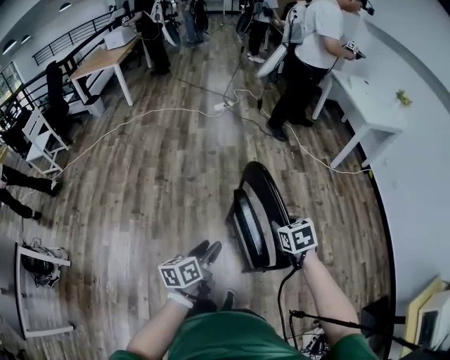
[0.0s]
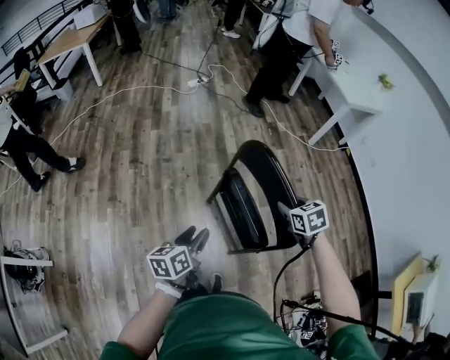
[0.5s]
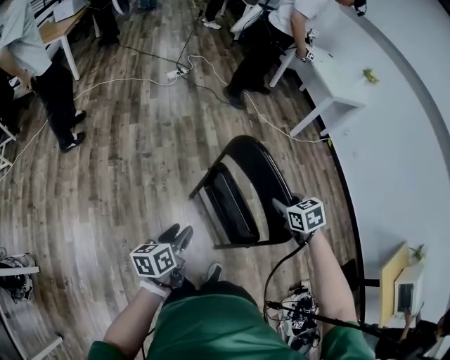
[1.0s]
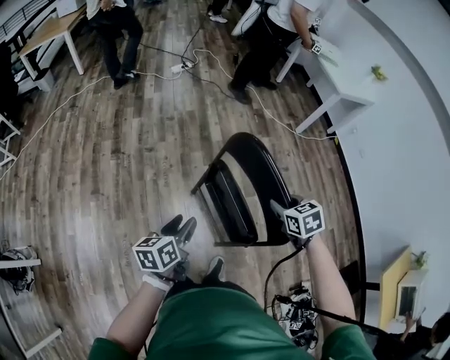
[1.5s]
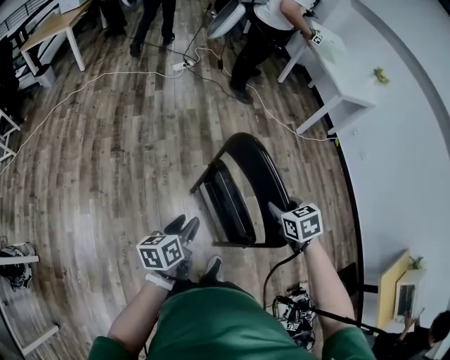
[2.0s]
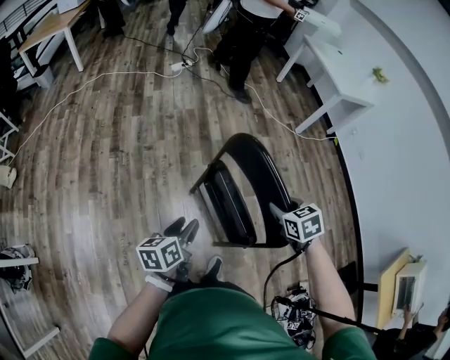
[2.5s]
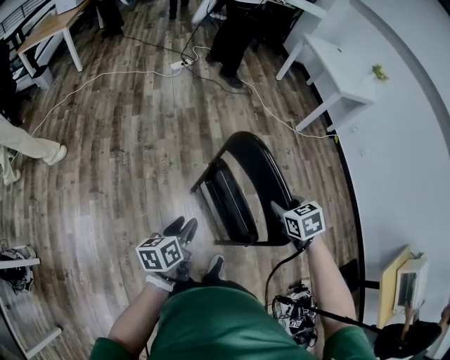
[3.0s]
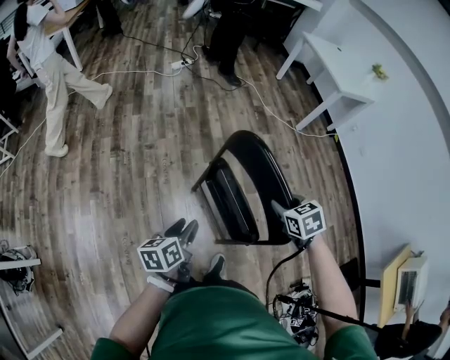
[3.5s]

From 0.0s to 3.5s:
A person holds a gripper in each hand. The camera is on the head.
From 0.0s to 2.0s: The left gripper travels forward by roughly 10 cm, while the right gripper ends up about 5 cm from where it was.
From 2.0s to 3.5s: The grippers make only small movements.

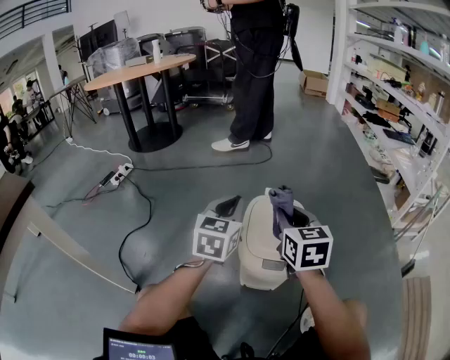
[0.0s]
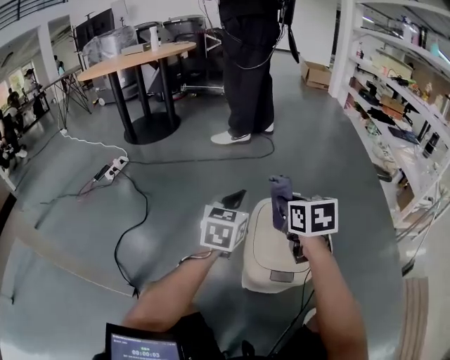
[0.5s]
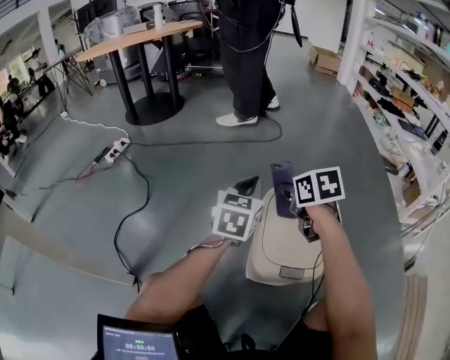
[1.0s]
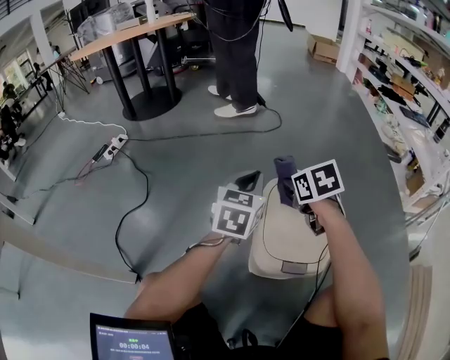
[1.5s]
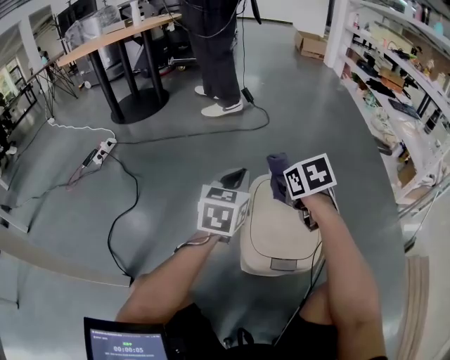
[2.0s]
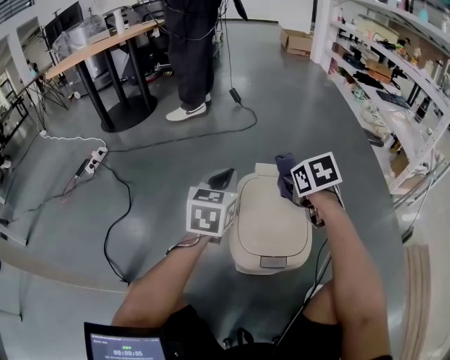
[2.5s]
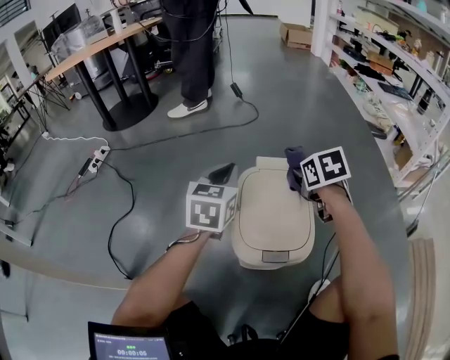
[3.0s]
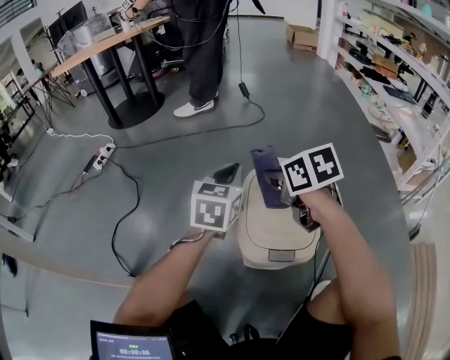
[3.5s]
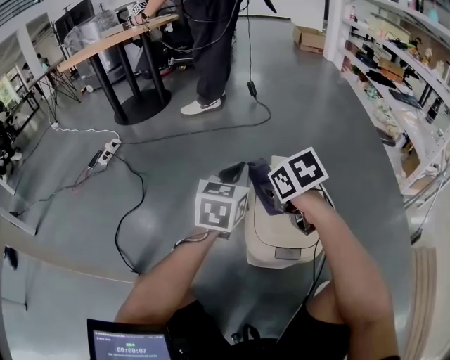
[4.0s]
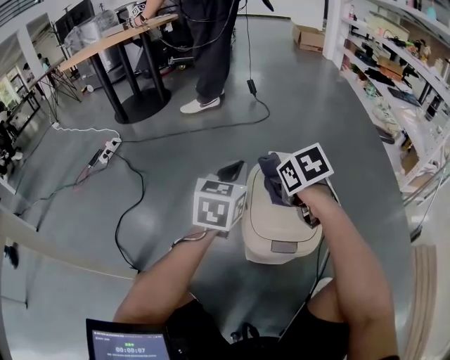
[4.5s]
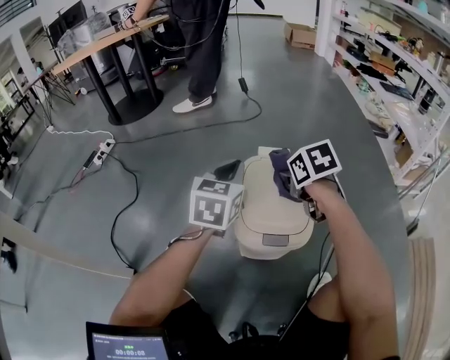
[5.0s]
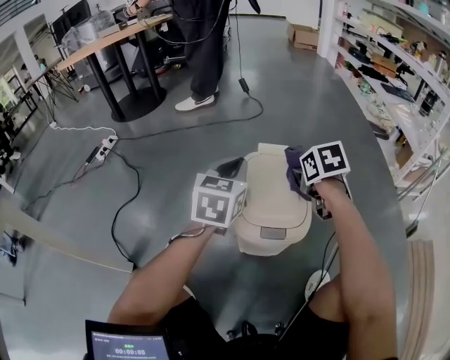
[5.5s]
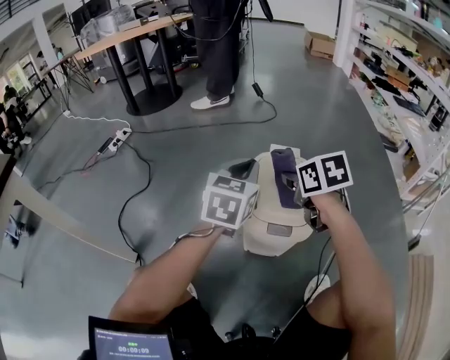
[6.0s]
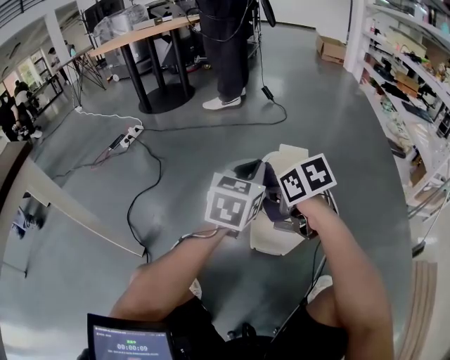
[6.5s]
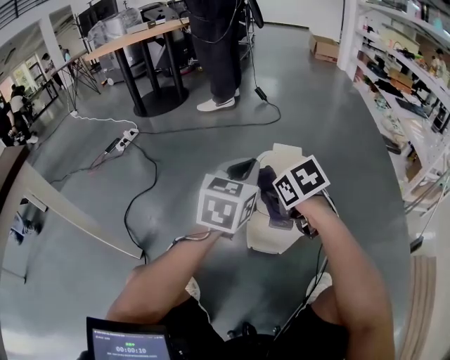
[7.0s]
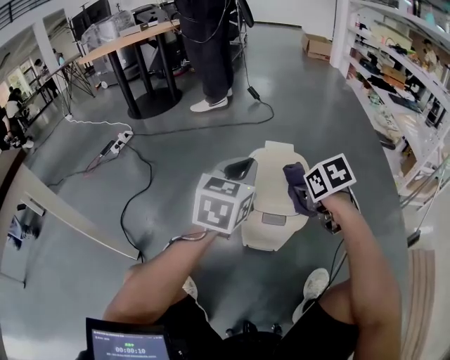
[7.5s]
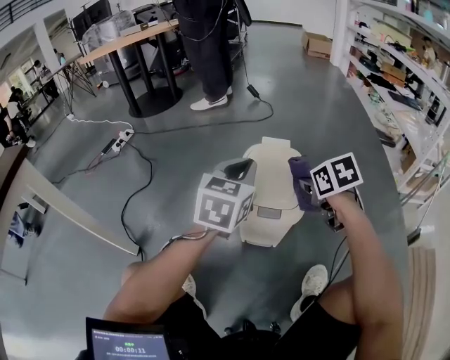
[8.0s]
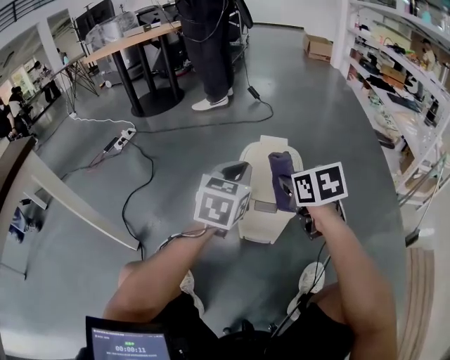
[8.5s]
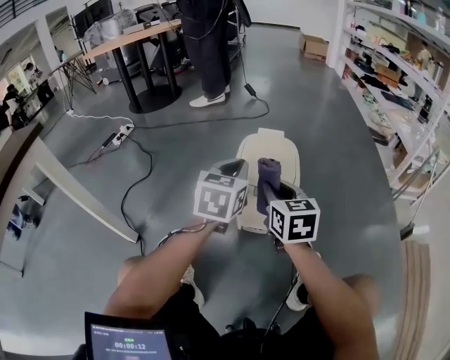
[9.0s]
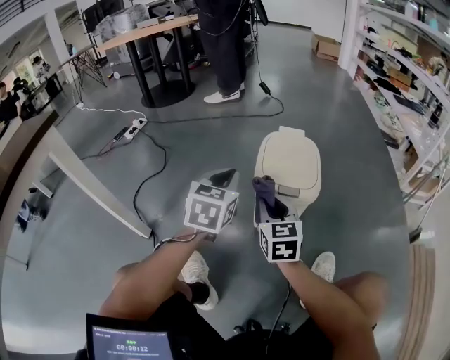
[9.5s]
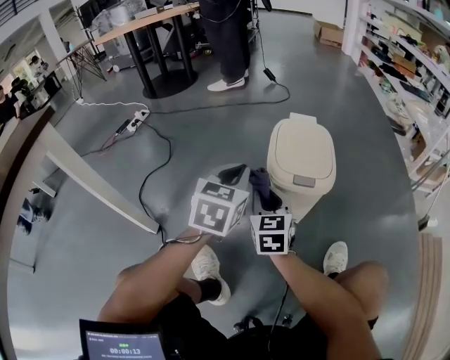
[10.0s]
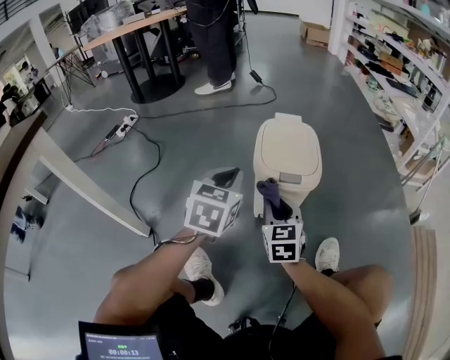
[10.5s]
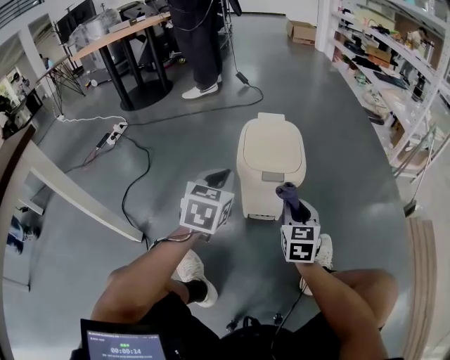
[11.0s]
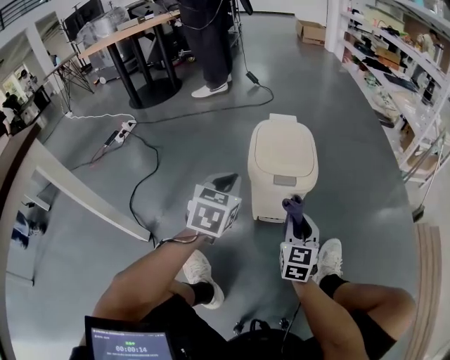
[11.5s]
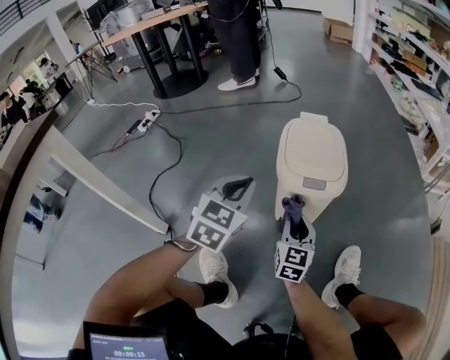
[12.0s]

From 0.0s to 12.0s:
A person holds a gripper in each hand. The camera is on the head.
From 0.0s to 2.0s: The right gripper heads forward and downward, covering roughly 20 cm, and angles its fingers downward, by roughly 30 degrees. Meanwhile the left gripper goes approximately 10 cm forward and downward.
From 2.0s to 4.0s: The right gripper heads to the left and backward, covering approximately 10 cm.
From 4.0s to 6.0s: The left gripper shifts approximately 10 cm backward; the right gripper heads to the right and backward, covering some 10 cm.
From 6.0s to 8.0s: The right gripper travels to the right and backward by about 10 cm, while the left gripper travels backward by about 5 cm.
From 8.0s to 10.0s: The left gripper is displaced to the left, backward and downward by approximately 15 cm; the right gripper travels to the left and backward by roughly 25 cm, and points its fingers approximately 30 degrees further upward.
From 10.0s to 12.0s: The right gripper moves to the right and downward, roughly 10 cm.

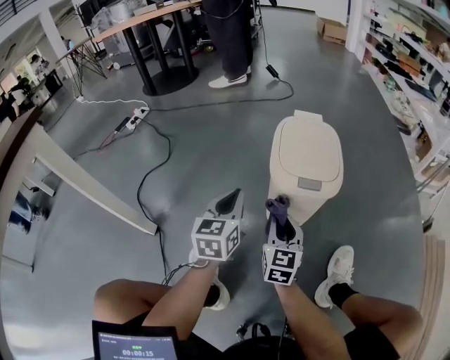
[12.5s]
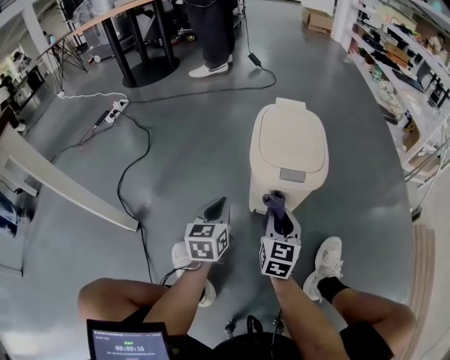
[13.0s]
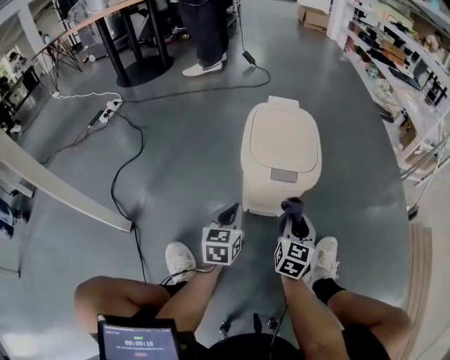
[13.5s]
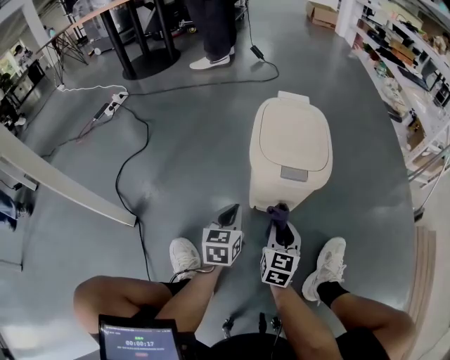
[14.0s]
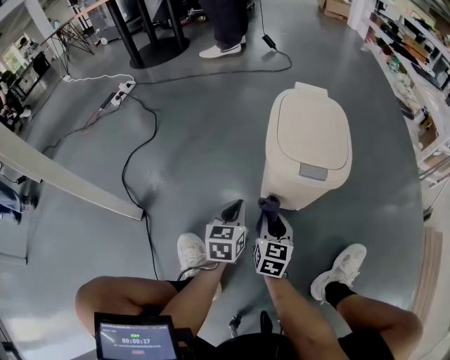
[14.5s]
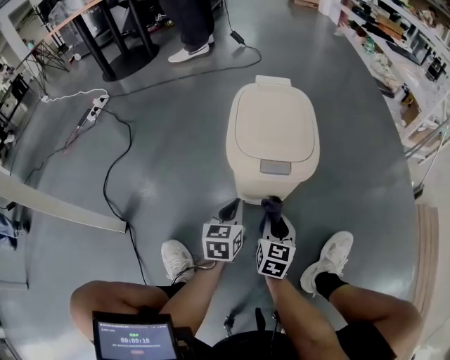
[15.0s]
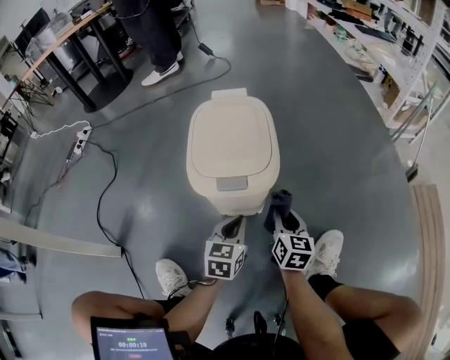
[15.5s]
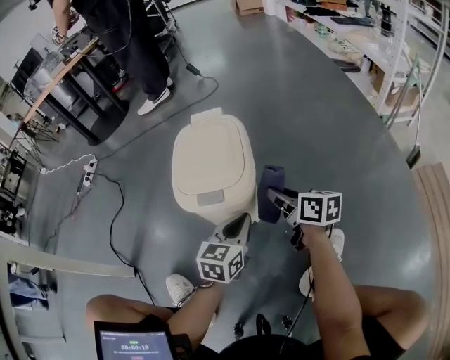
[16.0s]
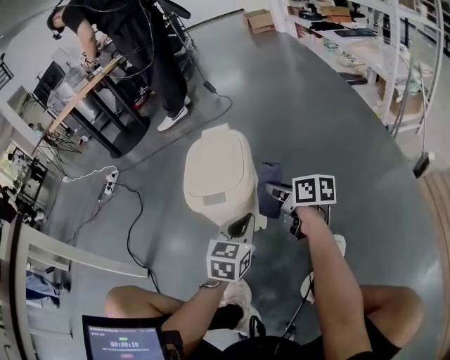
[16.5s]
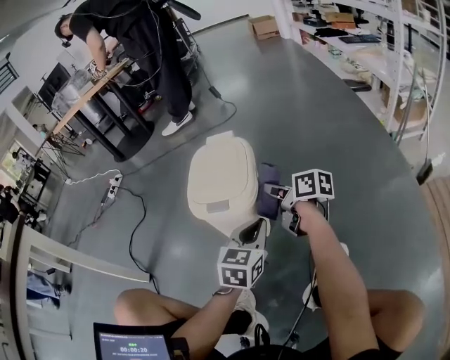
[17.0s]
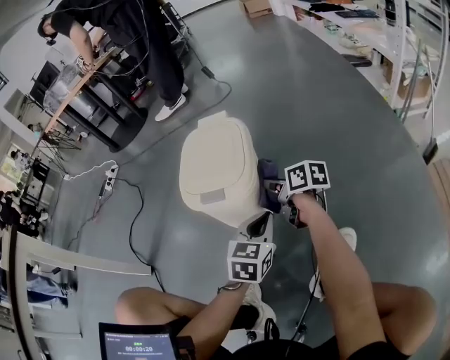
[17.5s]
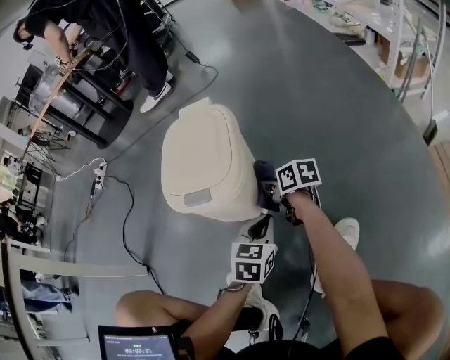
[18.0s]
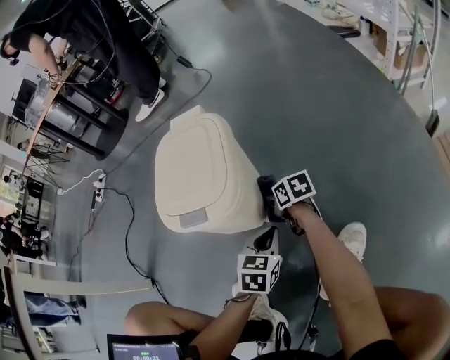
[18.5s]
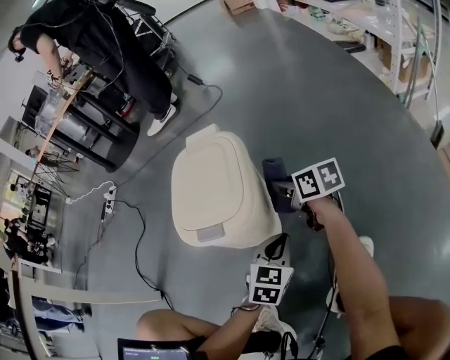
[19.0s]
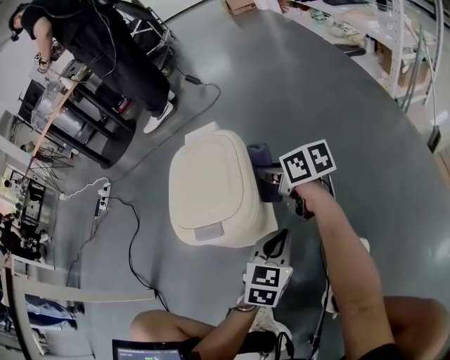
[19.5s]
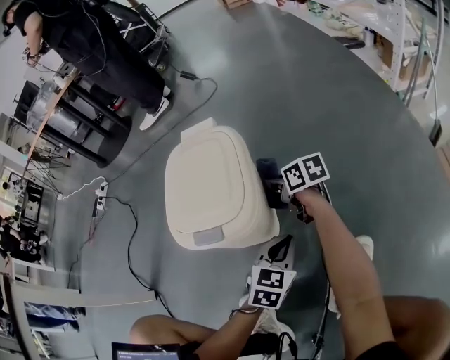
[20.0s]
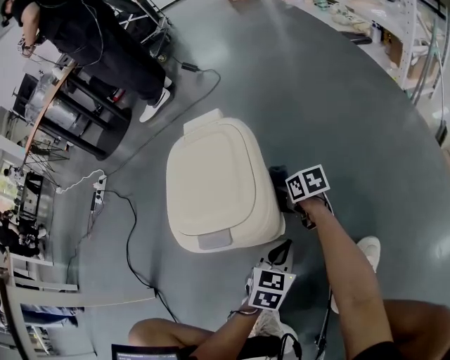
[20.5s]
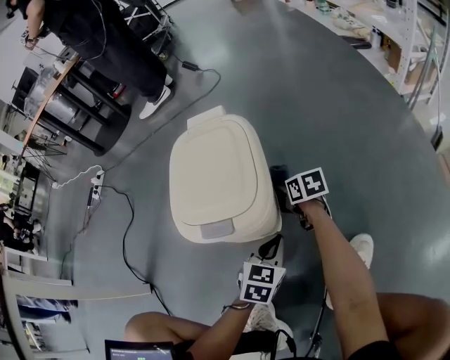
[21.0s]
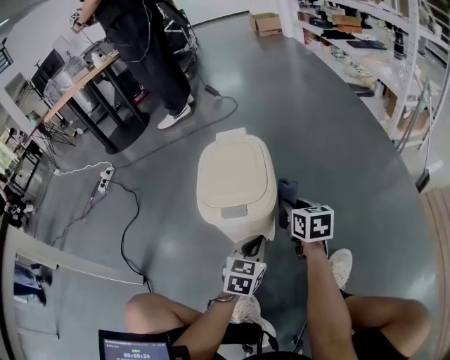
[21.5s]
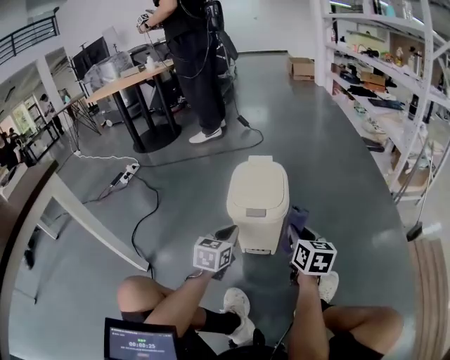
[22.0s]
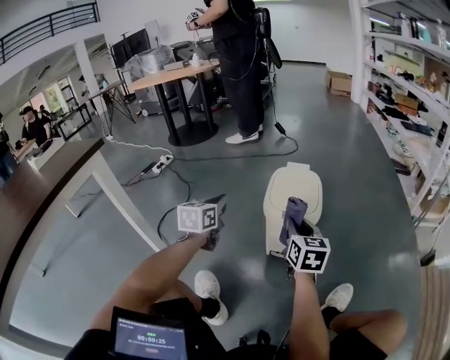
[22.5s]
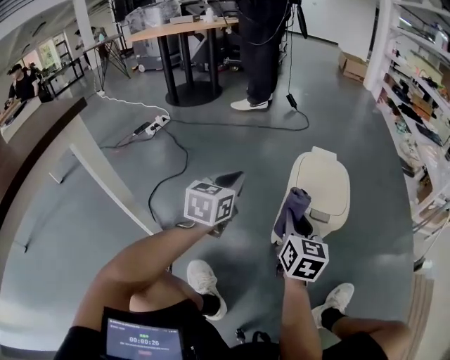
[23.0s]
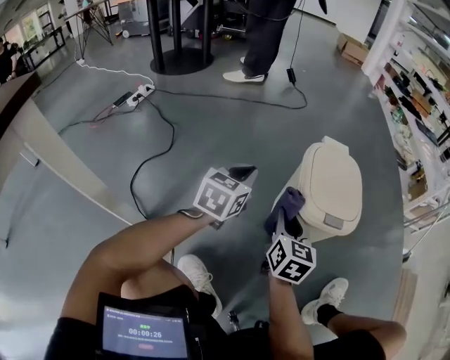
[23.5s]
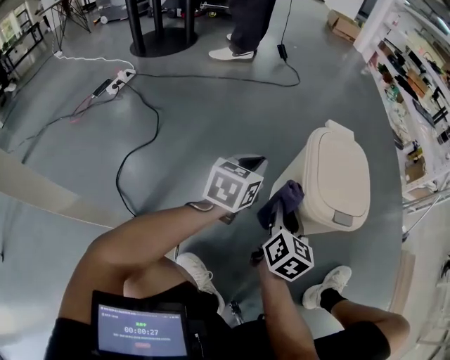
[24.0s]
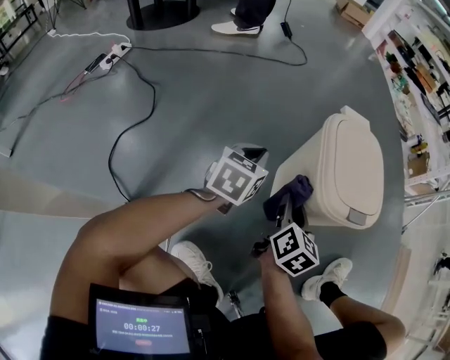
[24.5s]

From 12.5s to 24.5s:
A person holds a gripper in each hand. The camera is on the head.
From 12.5s to 14.5s: Both grippers travel together downward, roughly 15 cm. The right gripper goes to the right and returns, approximately 15 cm each way.
From 14.5s to 16.5s: The left gripper heads to the right and upward, covering roughly 30 cm, and swivels approximately 30 degrees. The right gripper moves to the right, upward and forward, about 30 cm, and swivels some 50 degrees.
From 16.5s to 18.5s: Both grippers travel together downward, about 20 cm. The right gripper turns by some 30 degrees.
From 18.5s to 20.5s: The left gripper travels upward and back again, roughly 5 cm each way. Meanwhile the right gripper travels forward by approximately 10 cm, and travels upward and back again, some 20 cm each way.
From 20.5s to 22.5s: The left gripper shifts about 50 cm to the left and upward, and rotates roughly 40 degrees; the right gripper heads upward and backward, covering approximately 40 cm, and changes its angle by roughly 40 degrees.
From 22.5s to 24.5s: The right gripper heads downward, to the left and forward, covering roughly 25 cm, and swivels some 30 degrees. Meanwhile the left gripper shifts roughly 25 cm downward and forward, and turns by approximately 20 degrees.
